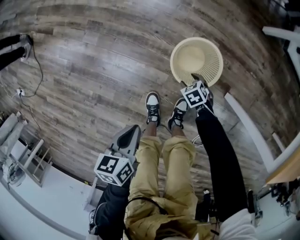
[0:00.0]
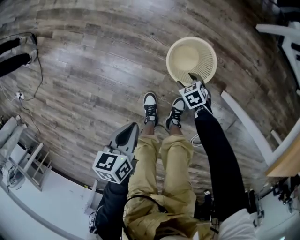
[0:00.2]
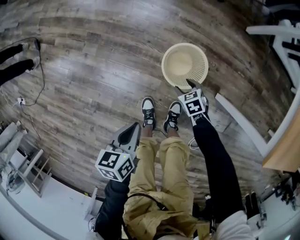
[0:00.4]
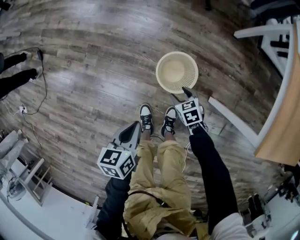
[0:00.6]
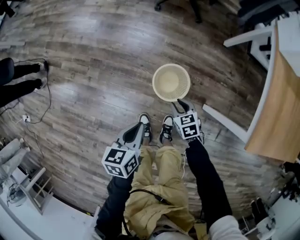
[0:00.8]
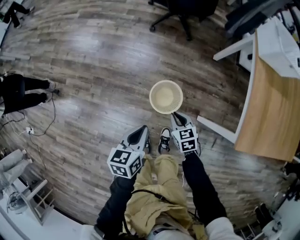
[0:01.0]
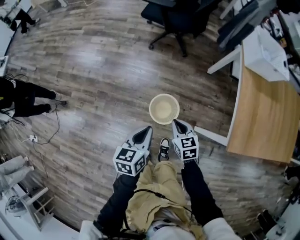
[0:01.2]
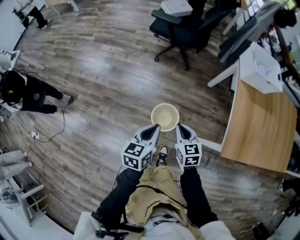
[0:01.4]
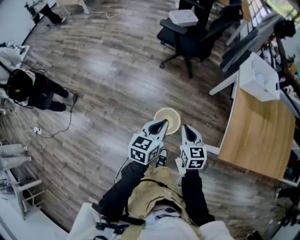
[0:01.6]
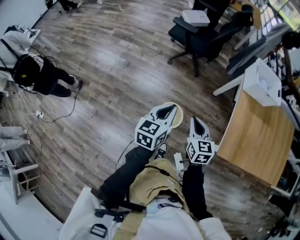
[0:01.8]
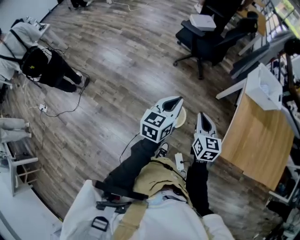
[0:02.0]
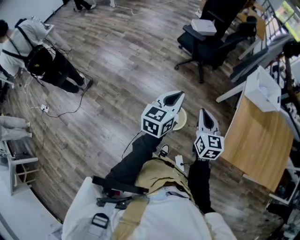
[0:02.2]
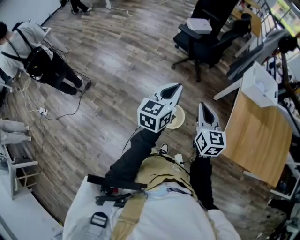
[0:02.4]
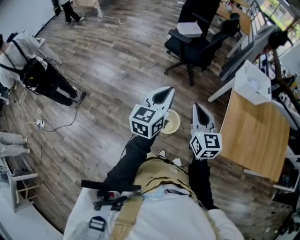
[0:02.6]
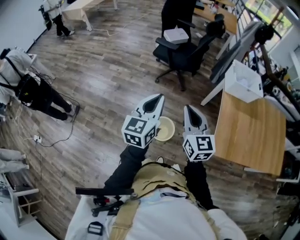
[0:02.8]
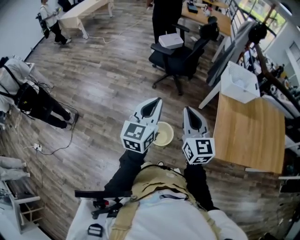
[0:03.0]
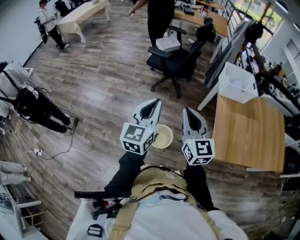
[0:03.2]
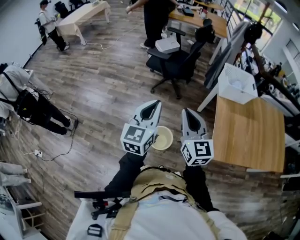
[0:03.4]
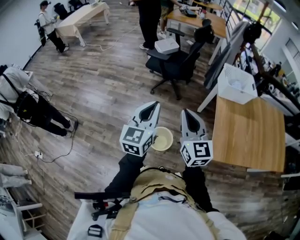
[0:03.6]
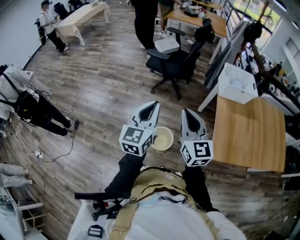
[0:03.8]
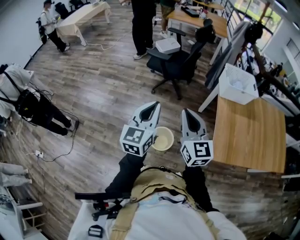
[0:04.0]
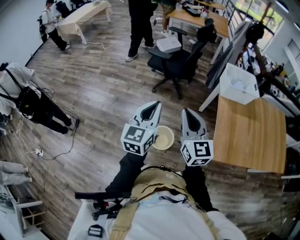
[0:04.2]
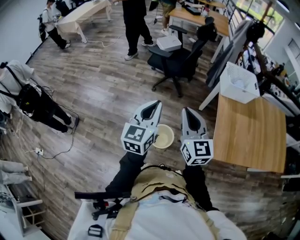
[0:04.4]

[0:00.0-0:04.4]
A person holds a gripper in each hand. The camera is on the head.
0:00.0 to 0:01.4: The right gripper moves upward, some 60 cm, points its fingers approximately 40 degrees further upward, and closes. Meanwhile the left gripper travels upward by some 35 cm, and turns by approximately 40 degrees.
0:01.4 to 0:03.0: The grippers both shift upward by some 30 cm. The right gripper angles its fingers upward, by roughly 30 degrees; the left gripper turns by about 30 degrees.
0:03.0 to 0:04.4: The grippers stay close to where they were, moving slightly.

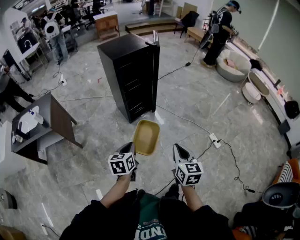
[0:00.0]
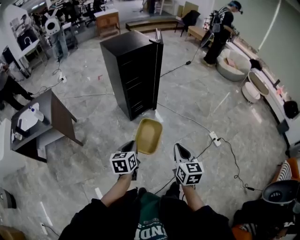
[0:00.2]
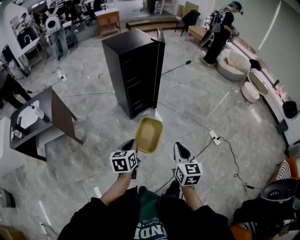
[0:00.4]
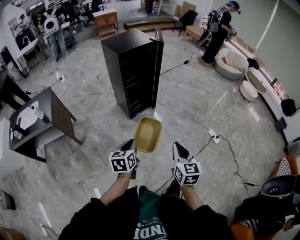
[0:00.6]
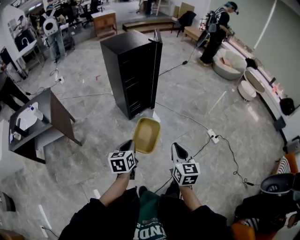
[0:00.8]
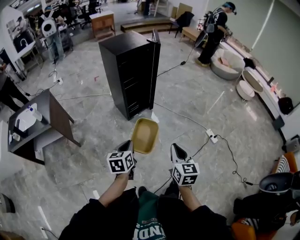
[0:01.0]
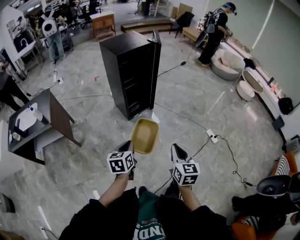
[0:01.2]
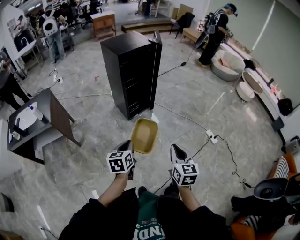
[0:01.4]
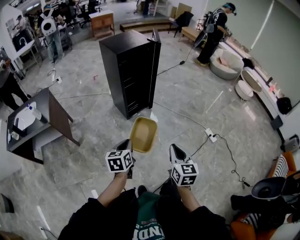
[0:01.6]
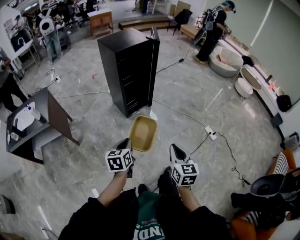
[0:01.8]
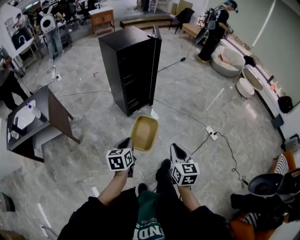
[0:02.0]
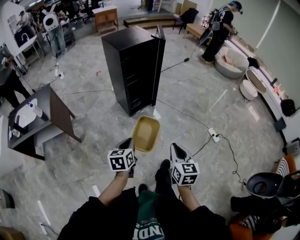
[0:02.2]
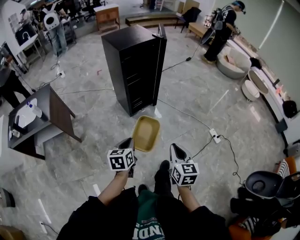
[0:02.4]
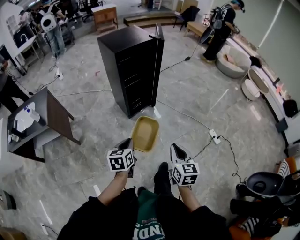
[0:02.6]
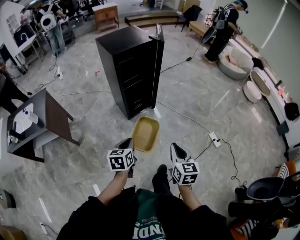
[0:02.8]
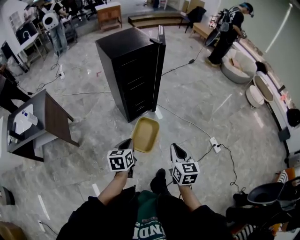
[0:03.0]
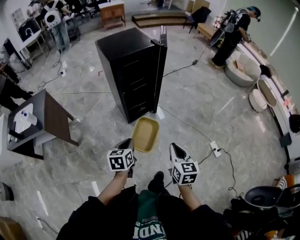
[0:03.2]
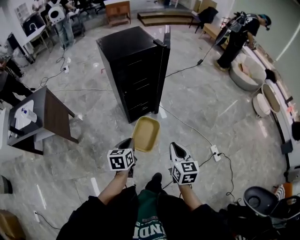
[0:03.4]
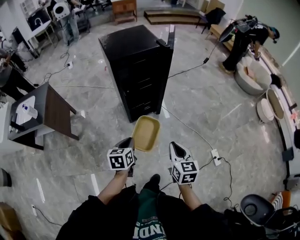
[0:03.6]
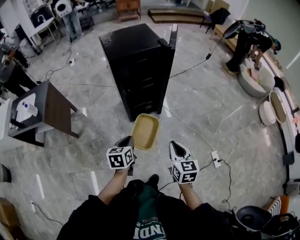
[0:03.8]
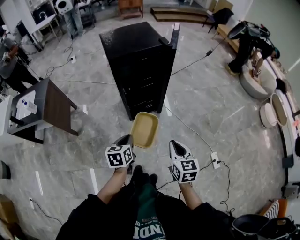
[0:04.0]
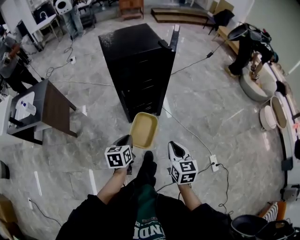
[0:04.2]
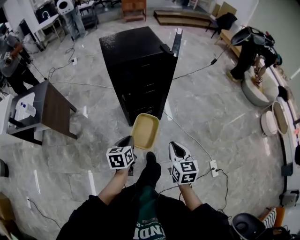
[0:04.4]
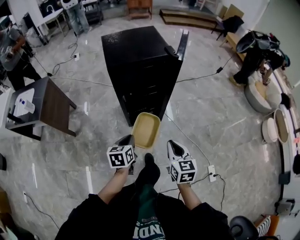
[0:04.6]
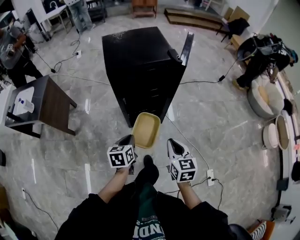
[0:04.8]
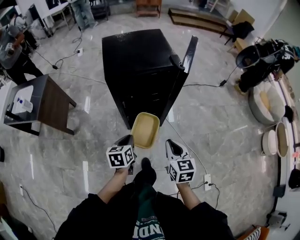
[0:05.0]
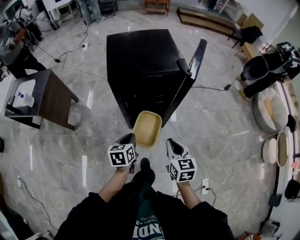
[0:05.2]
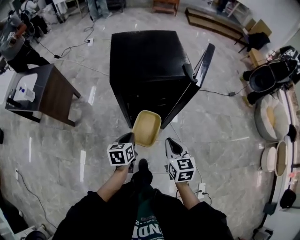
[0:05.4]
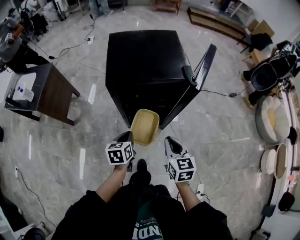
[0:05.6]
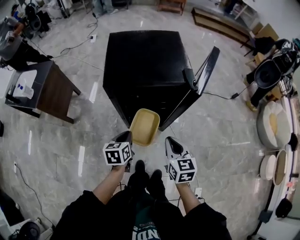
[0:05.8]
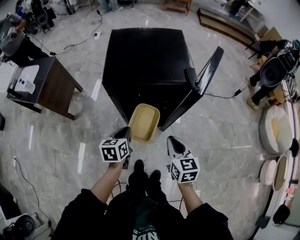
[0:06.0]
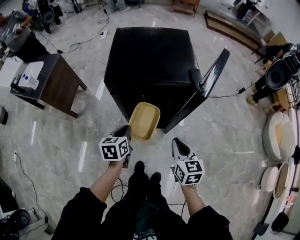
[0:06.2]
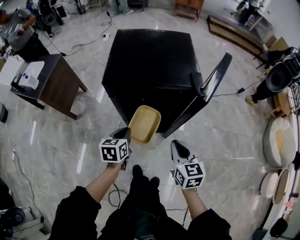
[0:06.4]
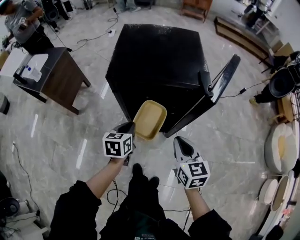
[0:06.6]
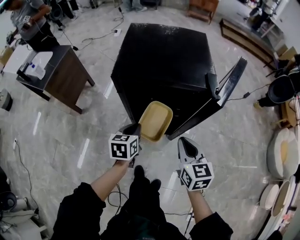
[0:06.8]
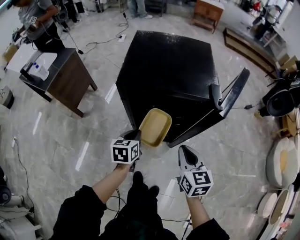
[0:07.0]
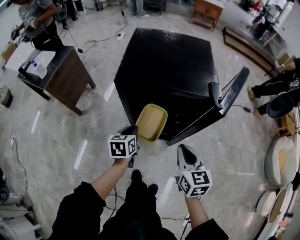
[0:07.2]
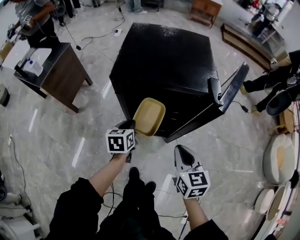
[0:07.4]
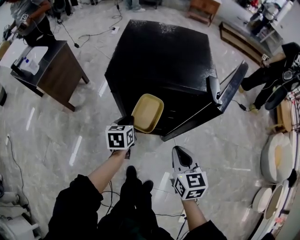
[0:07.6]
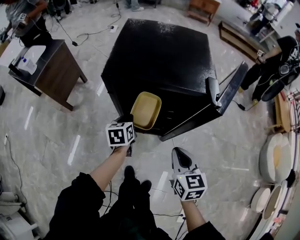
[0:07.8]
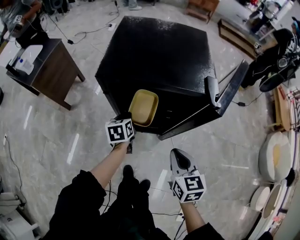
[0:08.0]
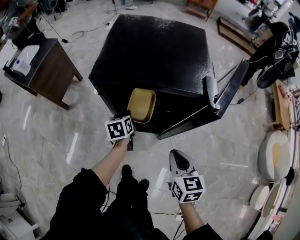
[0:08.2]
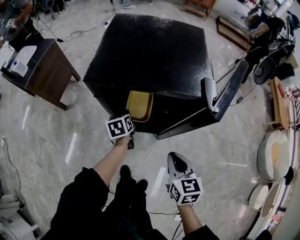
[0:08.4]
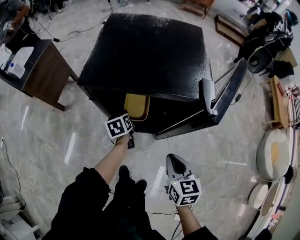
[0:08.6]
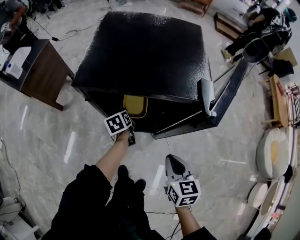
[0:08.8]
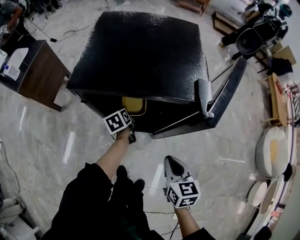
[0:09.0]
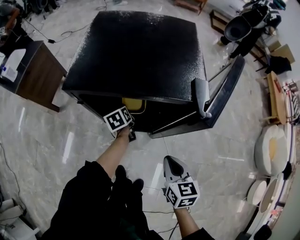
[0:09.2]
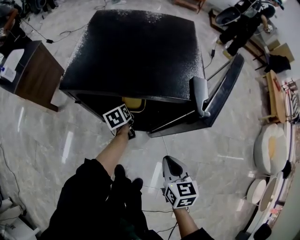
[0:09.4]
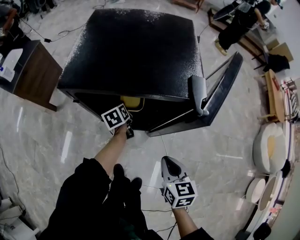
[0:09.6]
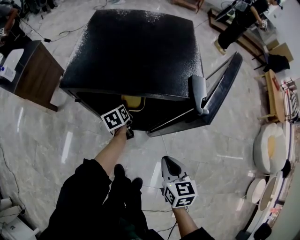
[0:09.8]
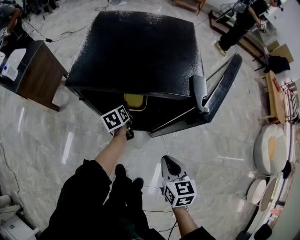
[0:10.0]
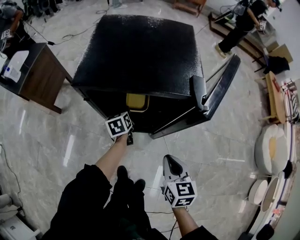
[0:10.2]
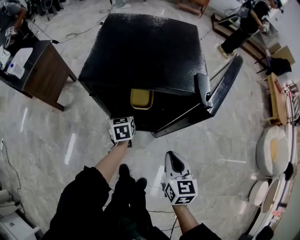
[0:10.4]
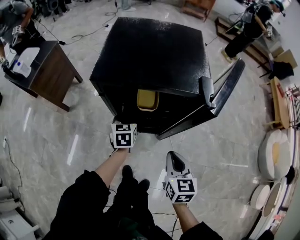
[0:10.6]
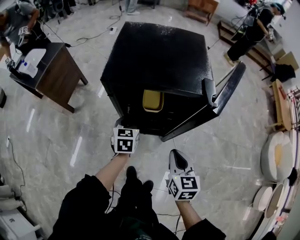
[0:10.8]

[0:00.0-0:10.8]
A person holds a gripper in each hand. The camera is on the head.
0:00.0 to 0:01.6: The right gripper moves to the left and backward, roughly 10 cm. Meanwhile the left gripper is displaced to the left by about 5 cm.
0:01.6 to 0:03.0: Both grippers travel together forward, some 15 cm.
0:03.0 to 0:04.6: The grippers both shift forward by approximately 20 cm.
0:04.6 to 0:06.2: The two grippers go some 20 cm forward.
0:06.2 to 0:07.8: The left gripper shifts roughly 10 cm forward and downward.
0:07.8 to 0:09.2: The left gripper moves forward, downward and to the right, some 15 cm. The right gripper goes some 5 cm downward.
0:09.2 to 0:10.8: The right gripper ends up about 5 cm from where it was; the left gripper travels upward and backward by about 15 cm, changes its angle by about 40 degrees, and opens, then closes again.

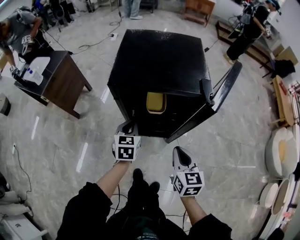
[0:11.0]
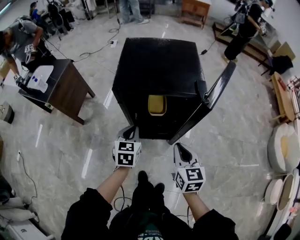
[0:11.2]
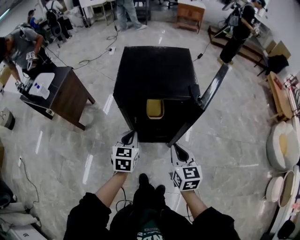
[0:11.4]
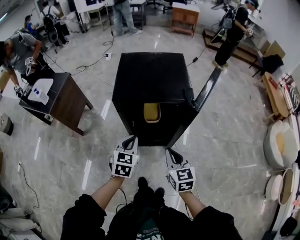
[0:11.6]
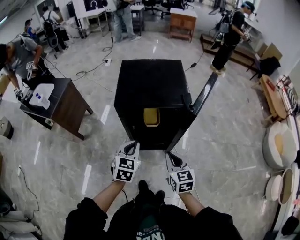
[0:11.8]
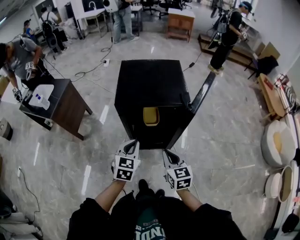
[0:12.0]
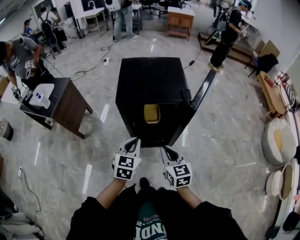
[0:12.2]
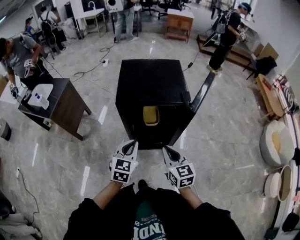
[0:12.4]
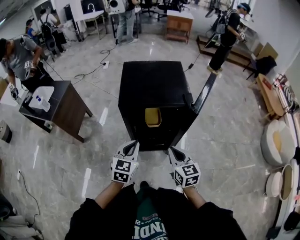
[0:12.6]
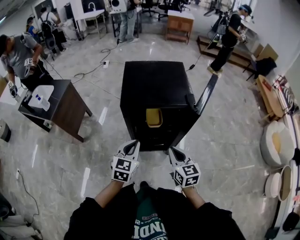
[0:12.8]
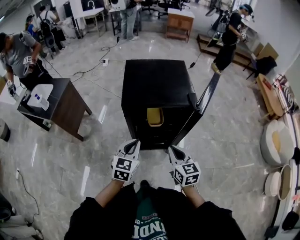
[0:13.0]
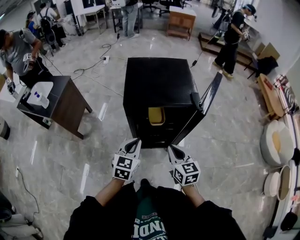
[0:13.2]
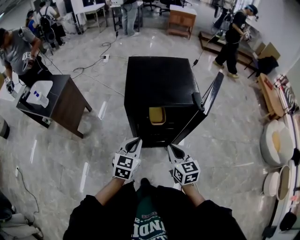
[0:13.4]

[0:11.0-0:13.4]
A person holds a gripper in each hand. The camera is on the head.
0:11.0 to 0:12.2: The right gripper heads upward and to the left, covering some 10 cm; the left gripper is displaced upward and backward by about 20 cm.
0:12.2 to 0:13.4: The left gripper changes place by approximately 5 cm. Meanwhile the right gripper shifts by about 5 cm.

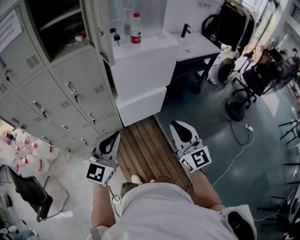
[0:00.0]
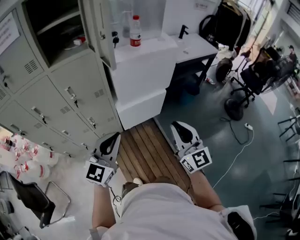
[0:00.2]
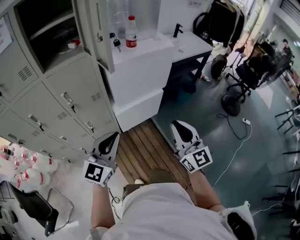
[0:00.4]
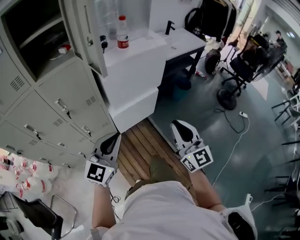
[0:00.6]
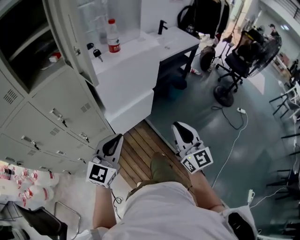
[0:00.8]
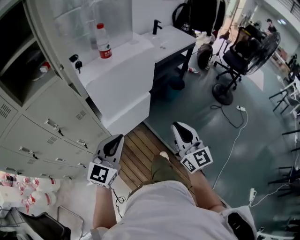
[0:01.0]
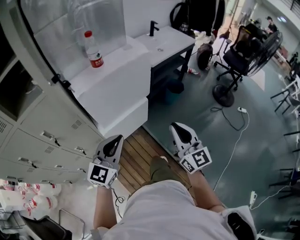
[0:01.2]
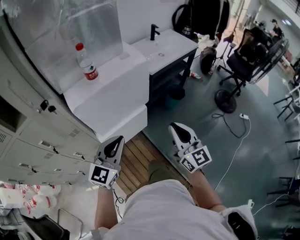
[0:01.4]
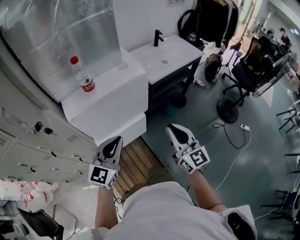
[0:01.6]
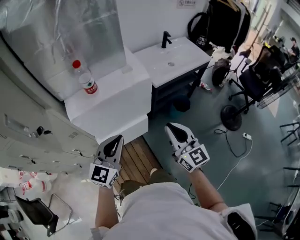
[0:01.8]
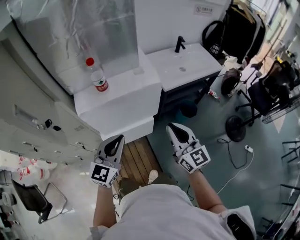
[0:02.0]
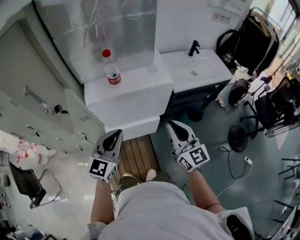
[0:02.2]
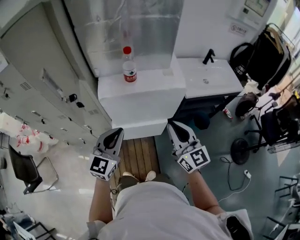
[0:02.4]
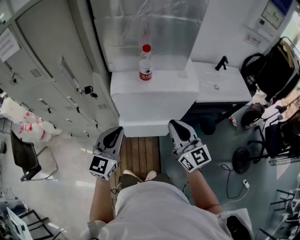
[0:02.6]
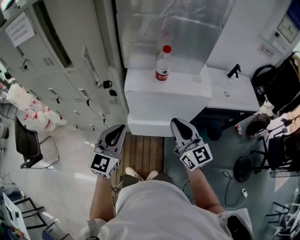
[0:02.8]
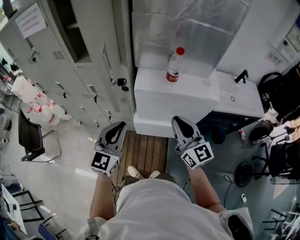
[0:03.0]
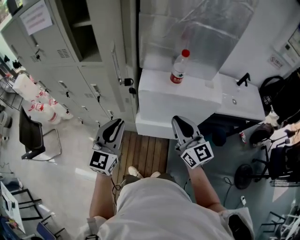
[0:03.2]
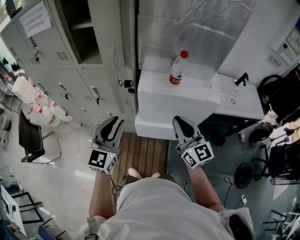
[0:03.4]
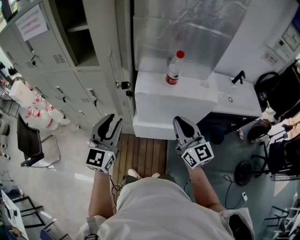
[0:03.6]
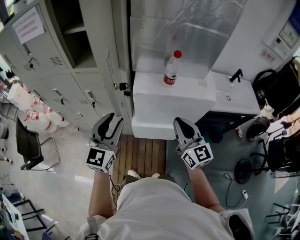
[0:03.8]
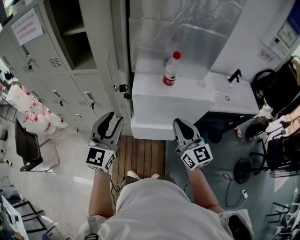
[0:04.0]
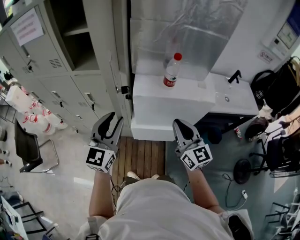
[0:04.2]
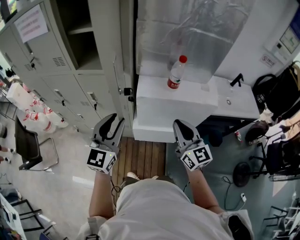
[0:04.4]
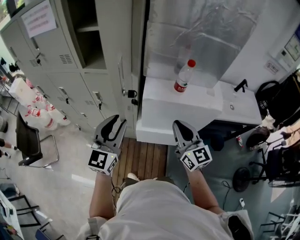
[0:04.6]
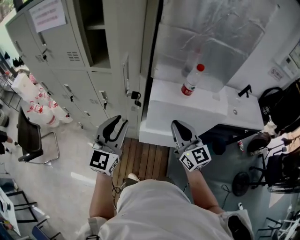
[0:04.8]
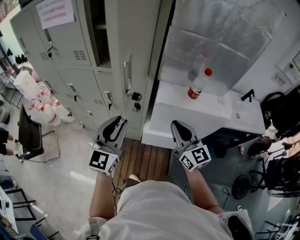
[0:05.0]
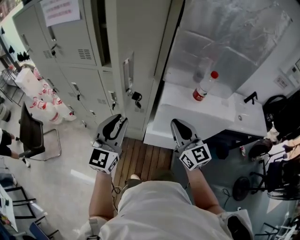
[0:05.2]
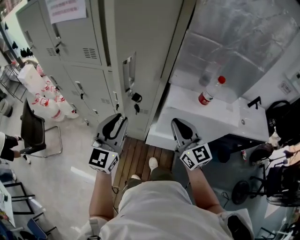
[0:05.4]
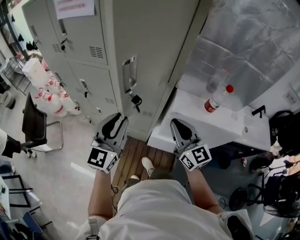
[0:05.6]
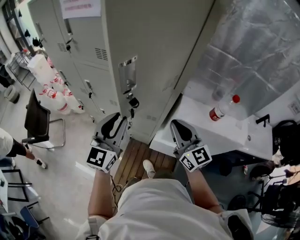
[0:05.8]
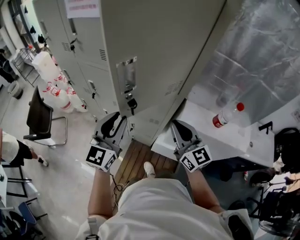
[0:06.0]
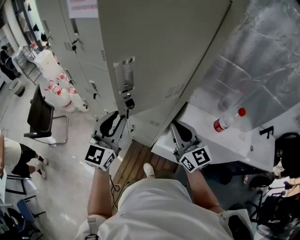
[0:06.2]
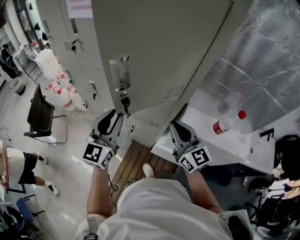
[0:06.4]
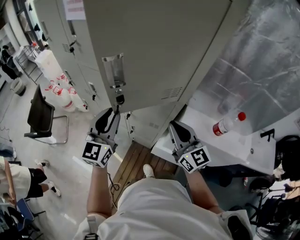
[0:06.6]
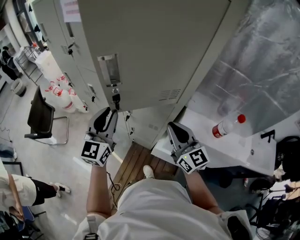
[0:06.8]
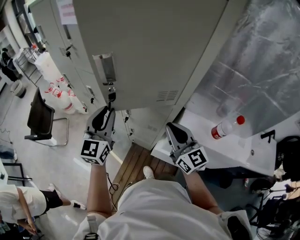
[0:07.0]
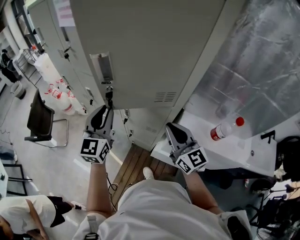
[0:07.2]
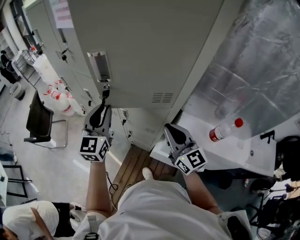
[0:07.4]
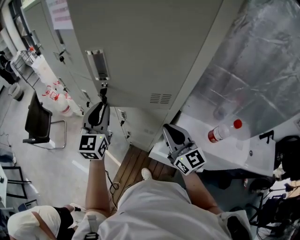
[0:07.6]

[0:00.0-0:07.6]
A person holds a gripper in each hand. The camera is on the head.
0:00.0 to 0:01.6: The two grippers go roughly 30 cm forward and to the right.
0:01.6 to 0:03.0: The left gripper ends up some 20 cm from where it was, and swivels some 40 degrees. Meanwhile the right gripper ends up approximately 25 cm from where it was, and changes its angle by some 40 degrees.
0:03.0 to 0:04.6: The left gripper moves to the left, approximately 5 cm, and opens its fingers.
0:04.6 to 0:06.0: The grippers both shift to the left and forward by roughly 20 cm.
0:06.0 to 0:07.6: The left gripper travels forward by some 10 cm; the right gripper moves forward, approximately 5 cm.
